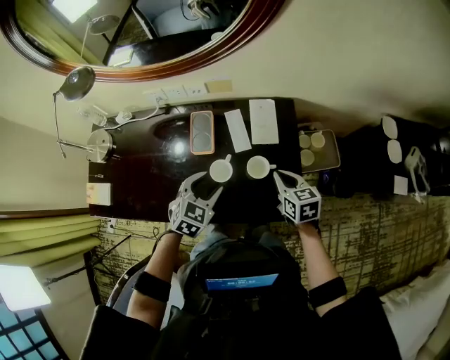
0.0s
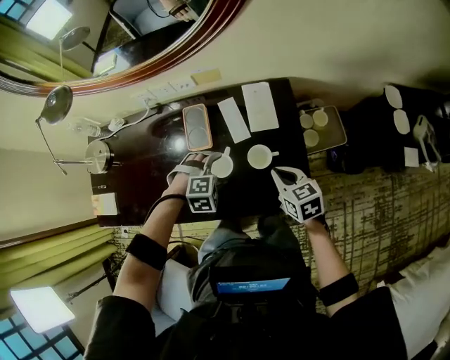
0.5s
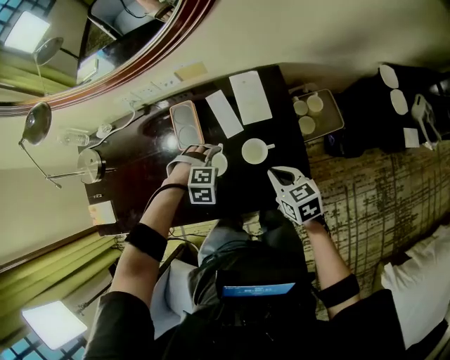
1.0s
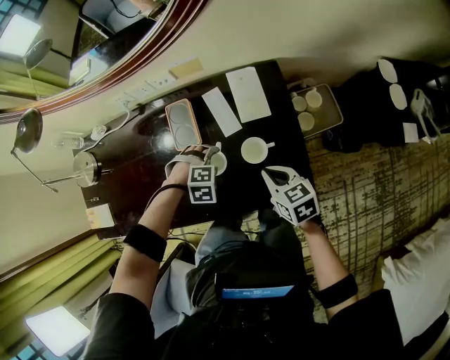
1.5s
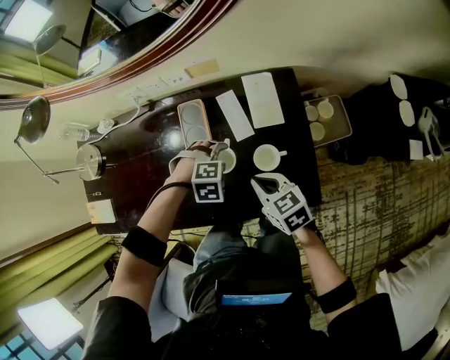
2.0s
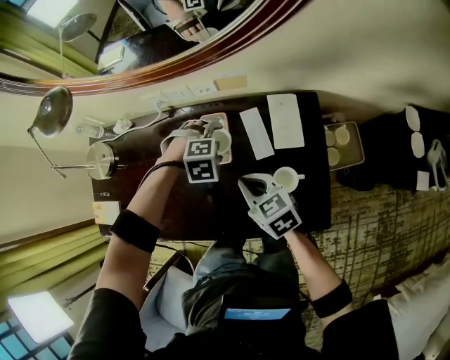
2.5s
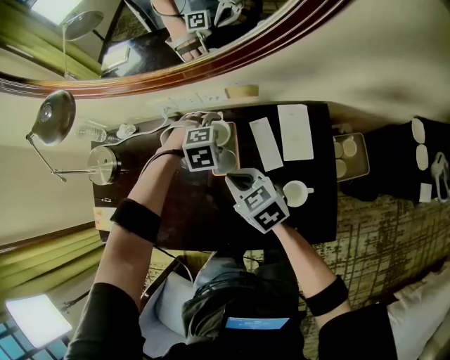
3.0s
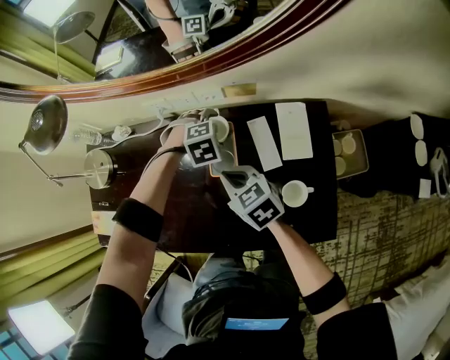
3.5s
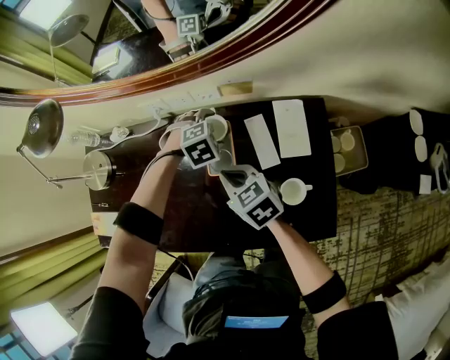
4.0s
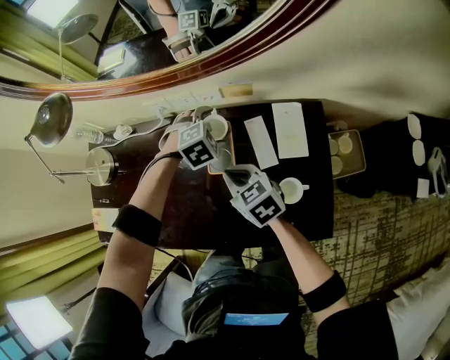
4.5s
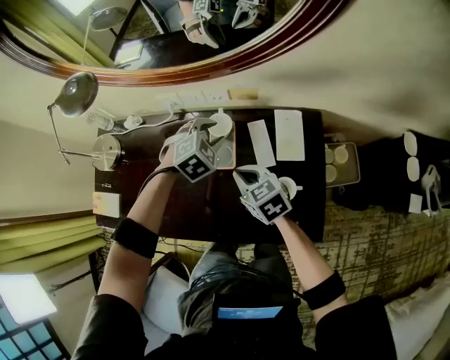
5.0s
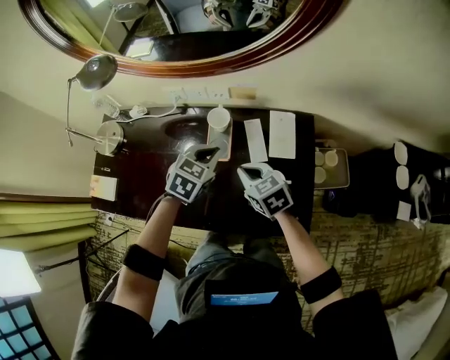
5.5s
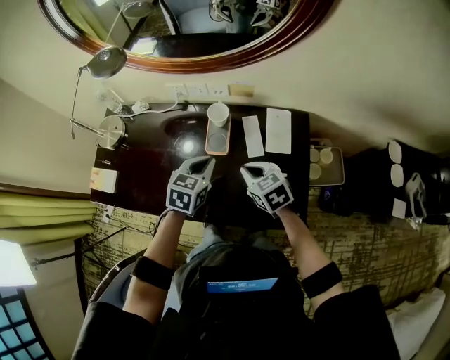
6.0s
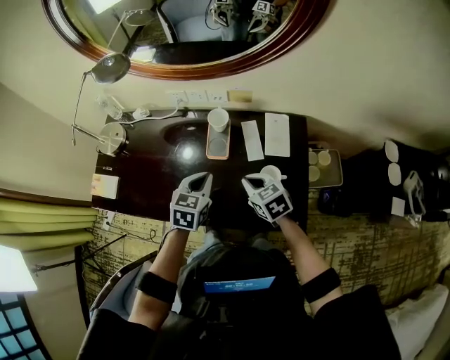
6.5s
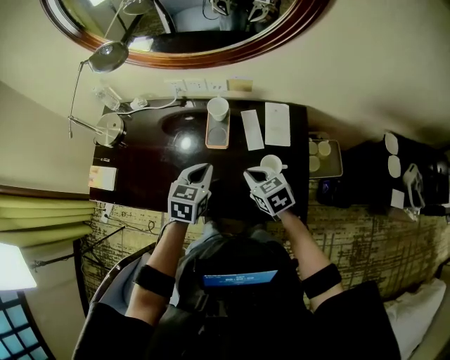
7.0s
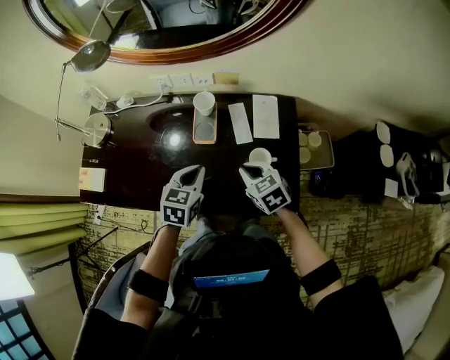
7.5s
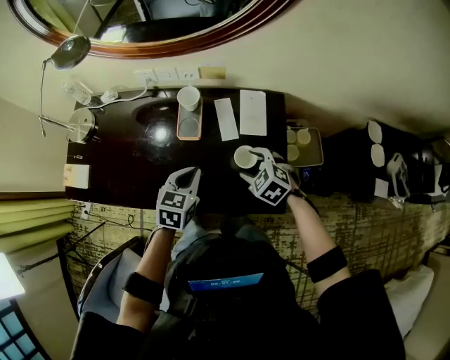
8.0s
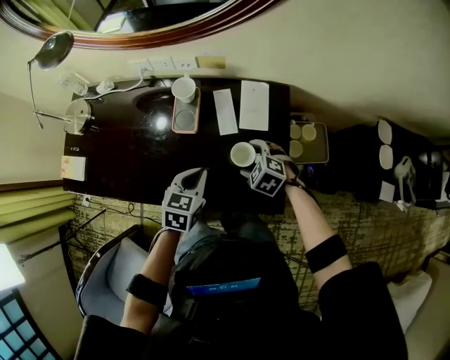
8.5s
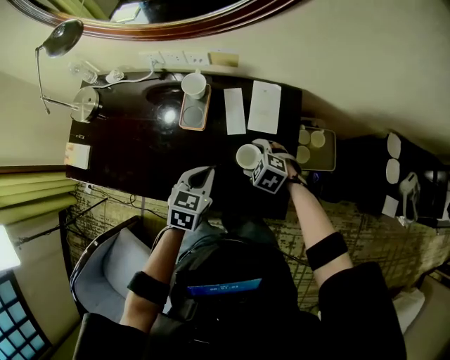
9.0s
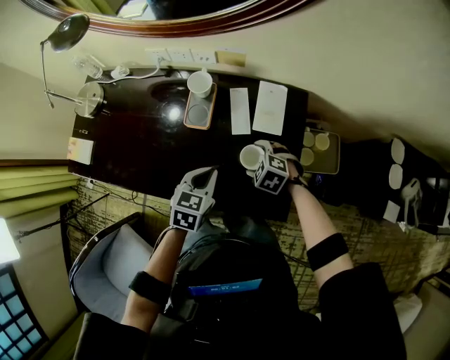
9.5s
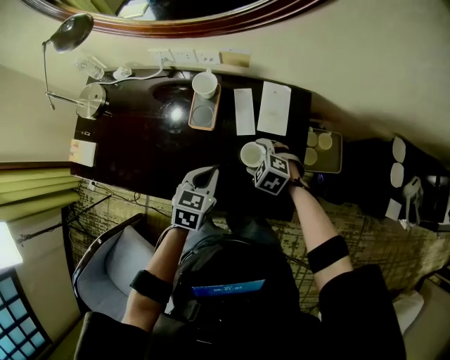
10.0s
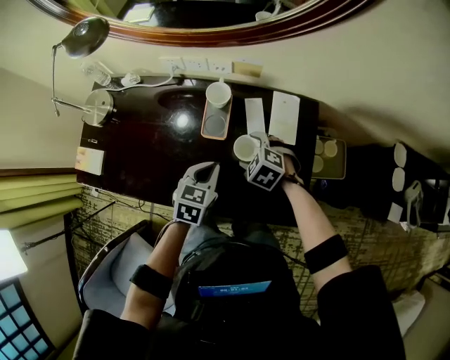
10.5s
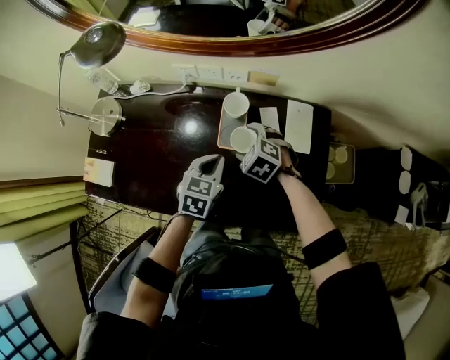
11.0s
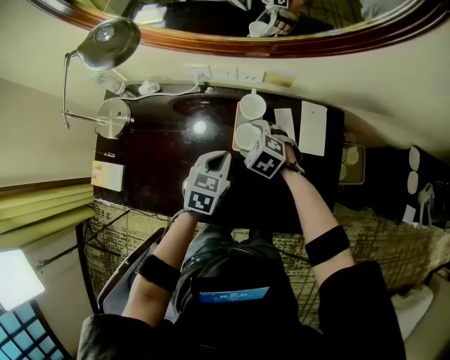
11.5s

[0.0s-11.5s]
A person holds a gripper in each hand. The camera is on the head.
0.0s to 2.0s: The left gripper goes roughly 15 cm downward, and angles its fingers downward, by some 30 degrees. Meanwhile the right gripper changes place by some 10 cm.
2.0s to 4.0s: The right gripper ends up about 20 cm from where it was. The left gripper ends up some 25 cm from where it was, and rotates approximately 20 degrees.
4.0s to 6.0s: The left gripper is displaced backward and upward by approximately 25 cm, twists approximately 50 degrees counterclockwise, seen from behind, and closes its fingers. The right gripper heads backward and to the right, covering about 15 cm.
6.0s to 7.5s: The right gripper shifts by some 5 cm, while the left gripper travels backward by some 5 cm.
7.5s to 9.5s: The right gripper moves downward and to the right, some 15 cm, swivels some 40 degrees, and opens up, while the left gripper heads to the right and downward, covering approximately 10 cm.
9.5s to 11.5s: The right gripper is displaced to the left and forward by roughly 25 cm. The left gripper goes approximately 20 cm forward and to the left.

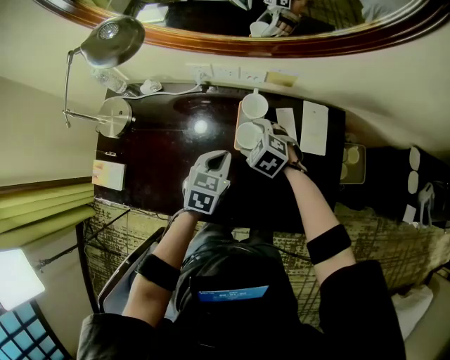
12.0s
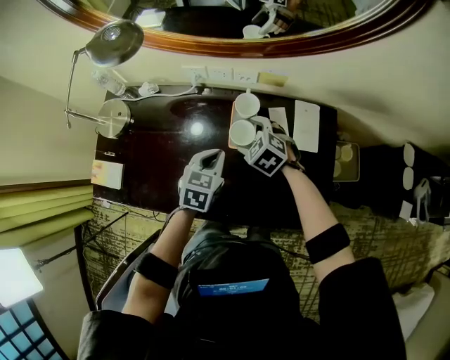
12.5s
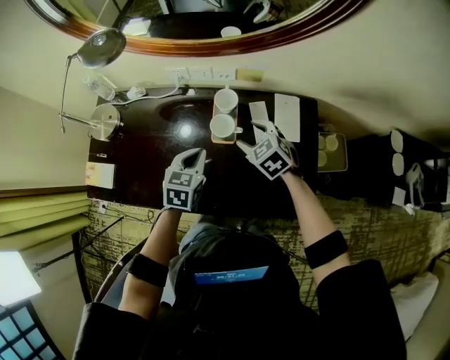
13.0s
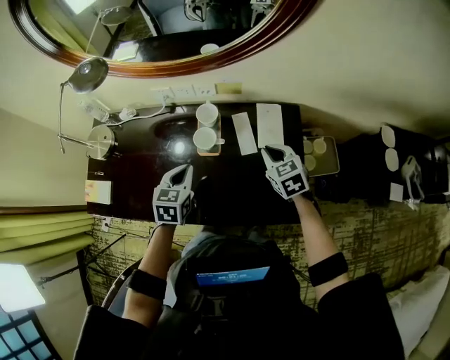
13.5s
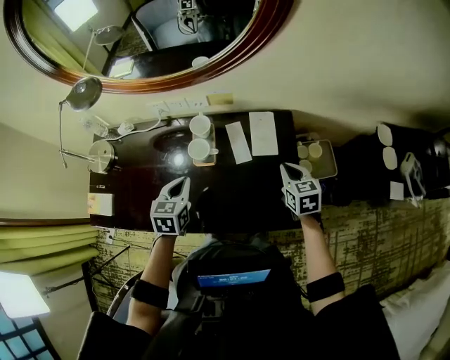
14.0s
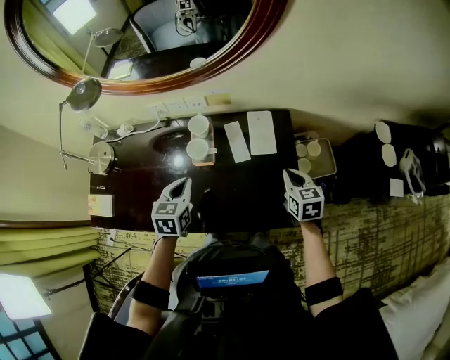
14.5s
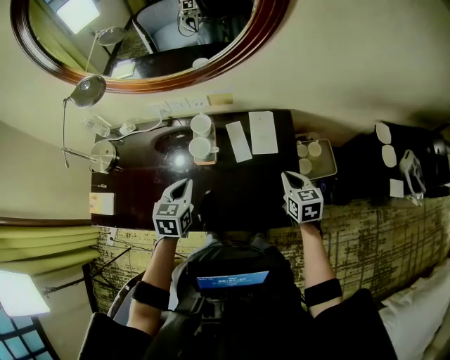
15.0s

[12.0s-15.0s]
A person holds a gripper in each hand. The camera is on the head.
12.0s to 13.5s: The right gripper travels to the right, upward and backward by roughly 25 cm, swivels approximately 40 degrees, and closes, while the left gripper moves upward and backward, approximately 10 cm.
13.5s to 15.0s: The right gripper moves to the right and backward, roughly 10 cm, and turns by roughly 20 degrees.

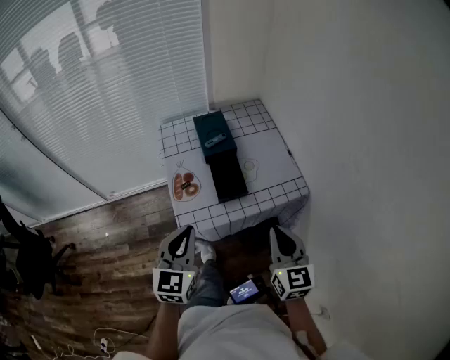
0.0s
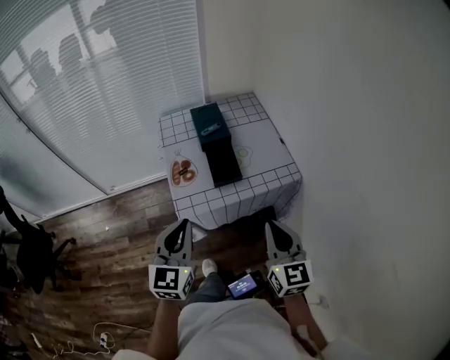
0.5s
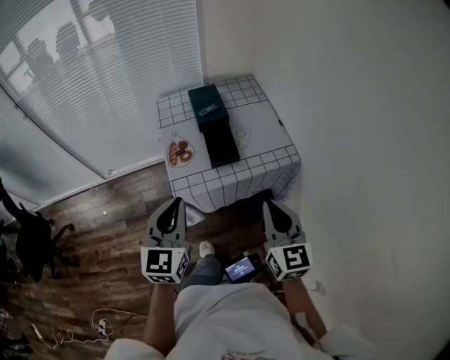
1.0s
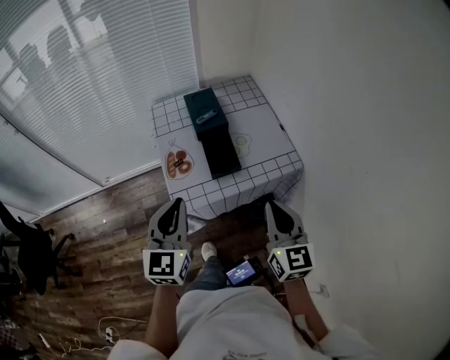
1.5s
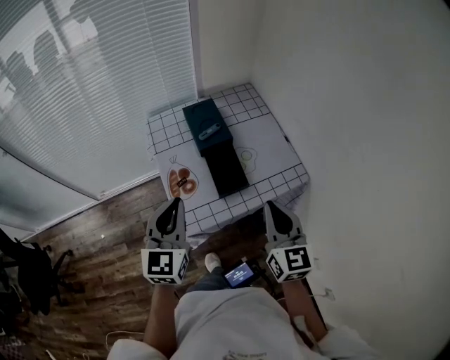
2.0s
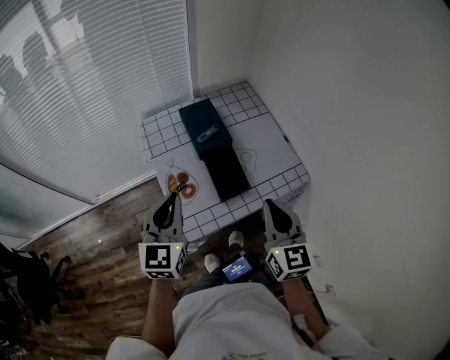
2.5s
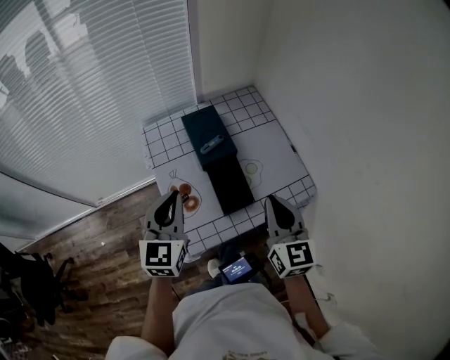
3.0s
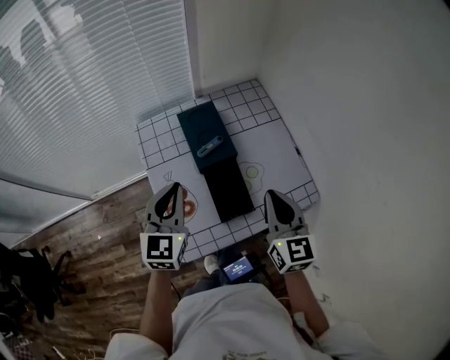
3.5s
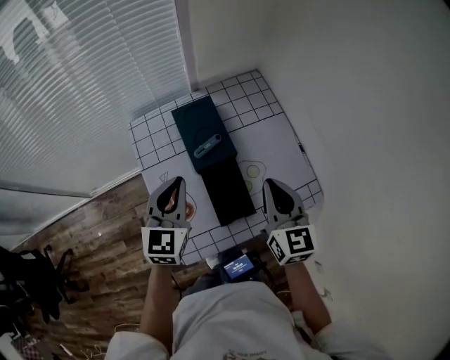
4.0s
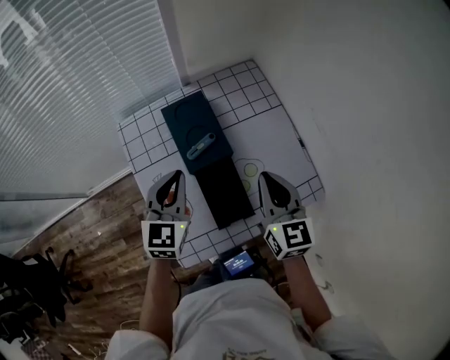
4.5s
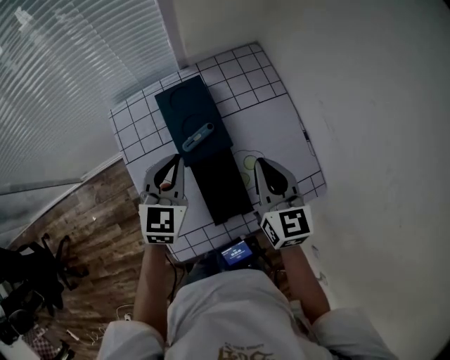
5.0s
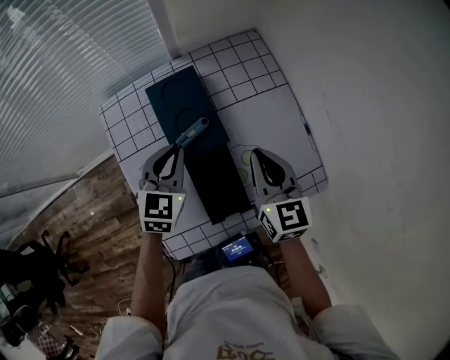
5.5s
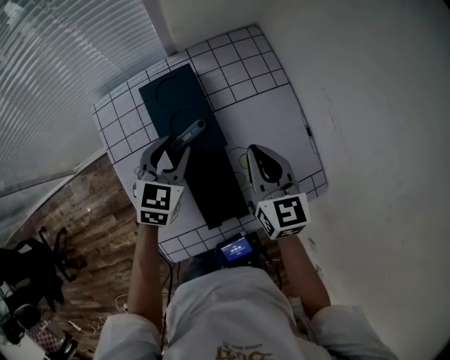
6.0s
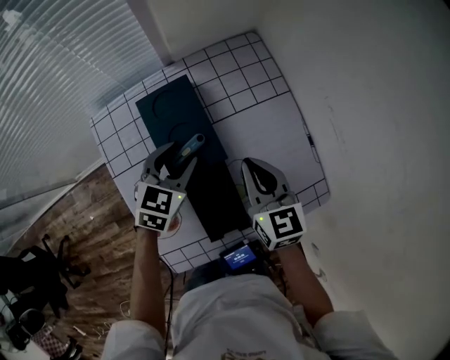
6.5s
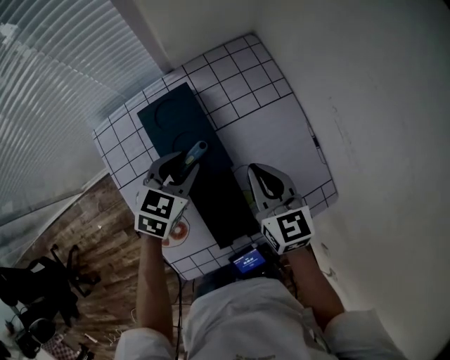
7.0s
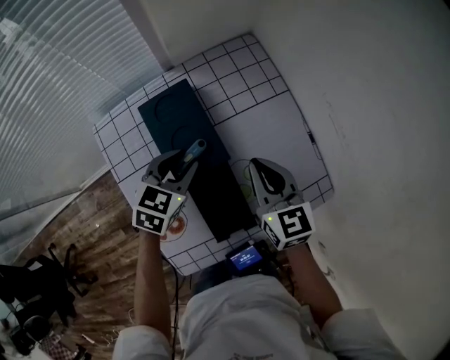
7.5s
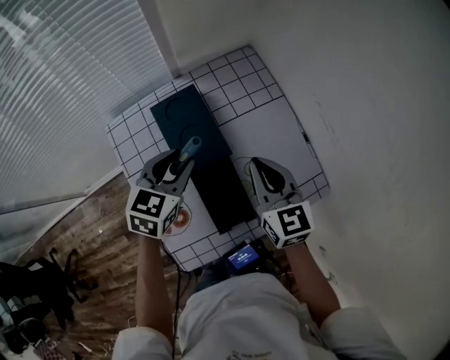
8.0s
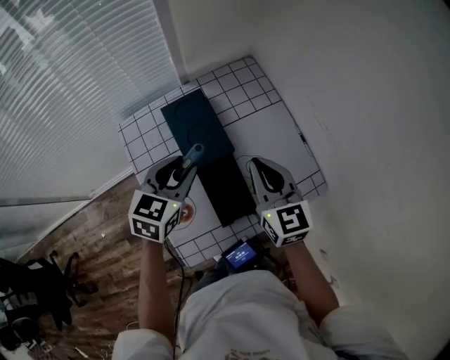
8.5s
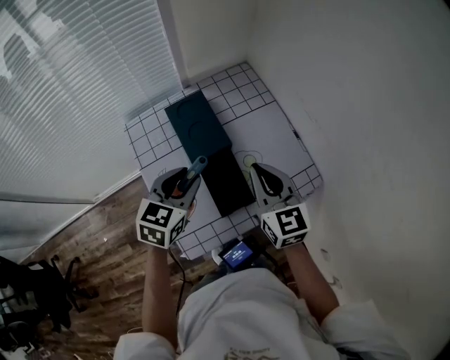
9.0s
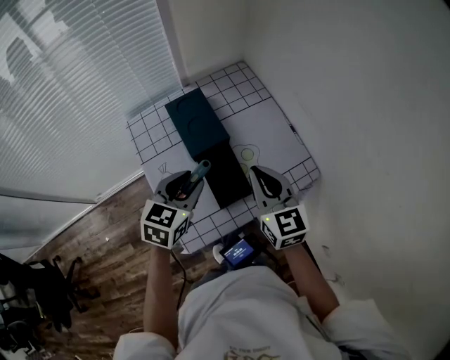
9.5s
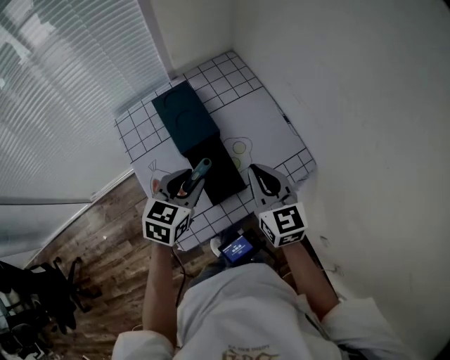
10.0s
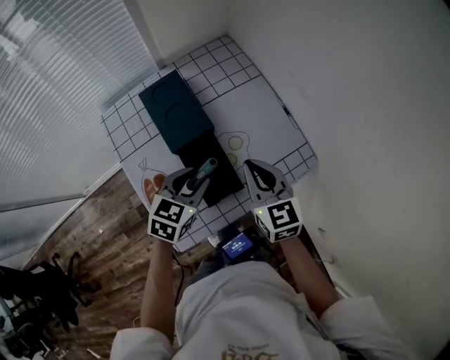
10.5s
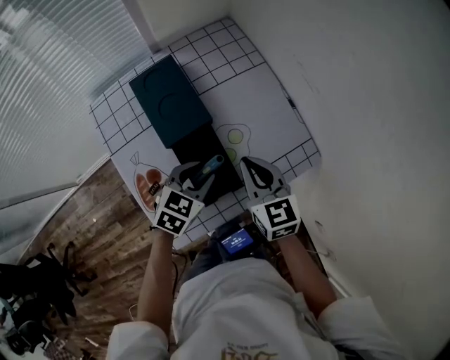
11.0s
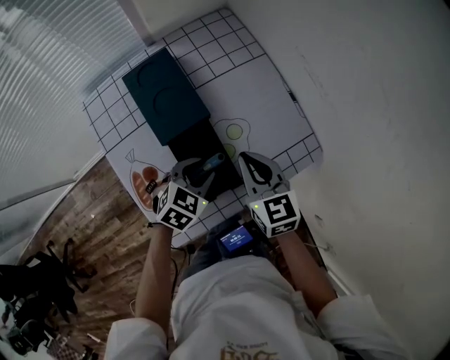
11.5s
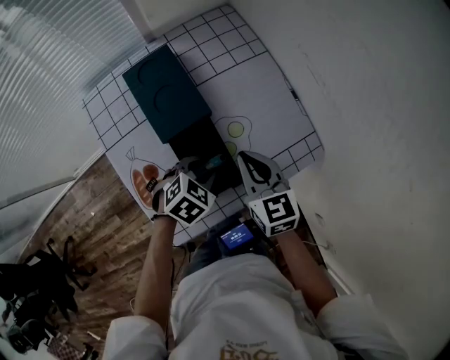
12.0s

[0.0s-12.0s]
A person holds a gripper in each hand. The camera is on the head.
0.0s to 2.0s: Both grippers travel together forward, some 5 cm.
2.0s to 4.0s: Both grippers travel together forward, some 20 cm.
4.0s to 6.0s: The left gripper heads downward and forward, covering some 15 cm, and opens up. The right gripper shifts approximately 15 cm forward and downward.
6.0s to 8.0s: The left gripper heads upward, covering about 5 cm.
8.0s to 10.0s: The right gripper moves backward, approximately 10 cm; the left gripper goes roughly 15 cm backward and to the right.
10.0s to 12.0s: The left gripper travels downward and to the right by some 15 cm, and swivels roughly 30 degrees, while the right gripper travels downward by about 10 cm.
